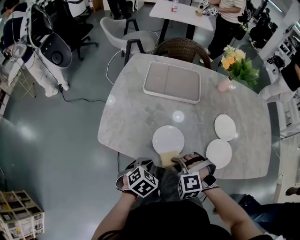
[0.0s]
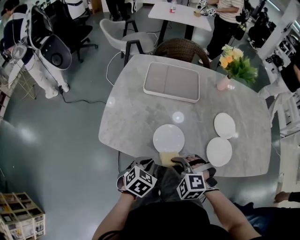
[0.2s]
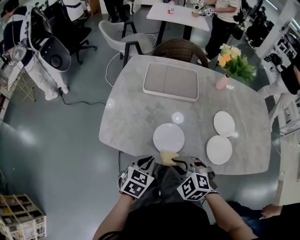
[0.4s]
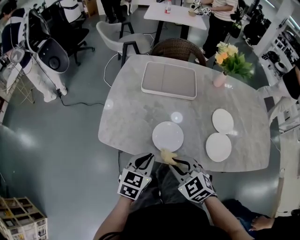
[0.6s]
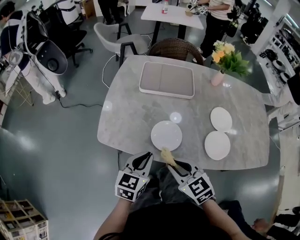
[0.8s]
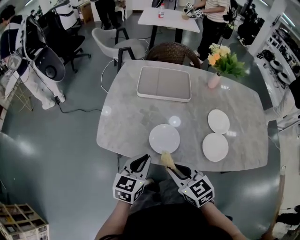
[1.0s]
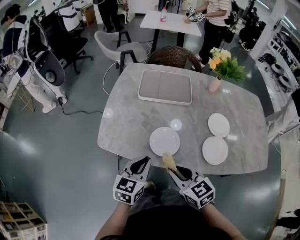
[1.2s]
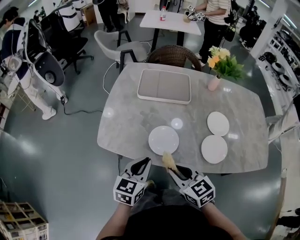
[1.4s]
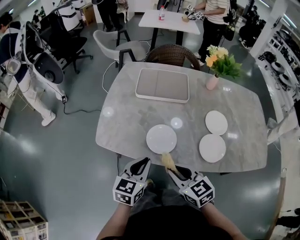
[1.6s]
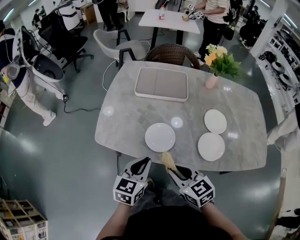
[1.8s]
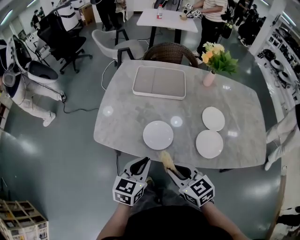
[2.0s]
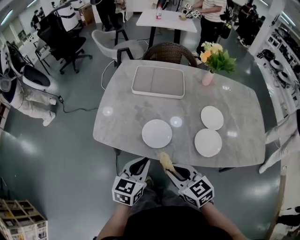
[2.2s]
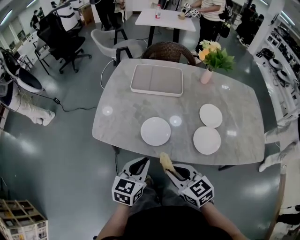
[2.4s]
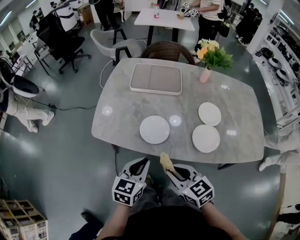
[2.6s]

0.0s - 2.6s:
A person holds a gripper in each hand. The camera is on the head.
0.0s - 1.2s: Both grippers travel together upward, roughly 10 cm. The left gripper tilts its fingers roughly 30 degrees upward. Meanwhile the right gripper rolls clockwise, seen from behind, by approximately 70 degrees.
1.2s - 2.6s: Both grippers move backward, some 5 cm.

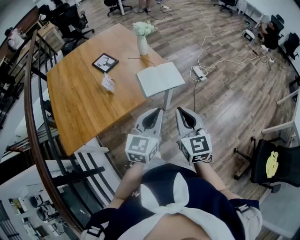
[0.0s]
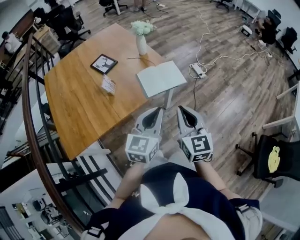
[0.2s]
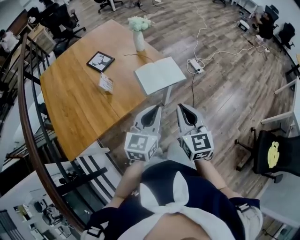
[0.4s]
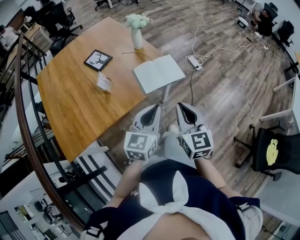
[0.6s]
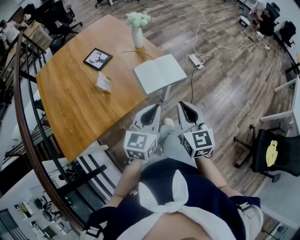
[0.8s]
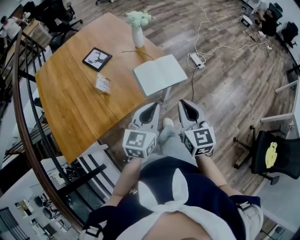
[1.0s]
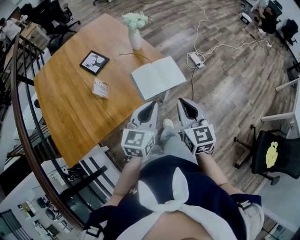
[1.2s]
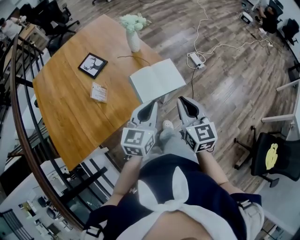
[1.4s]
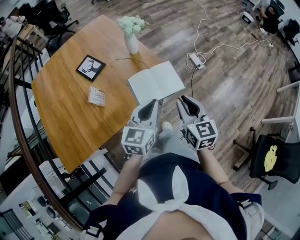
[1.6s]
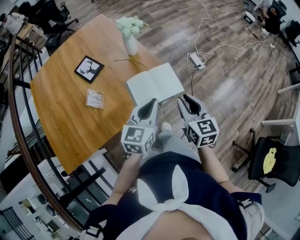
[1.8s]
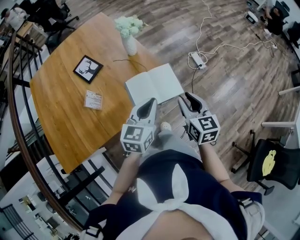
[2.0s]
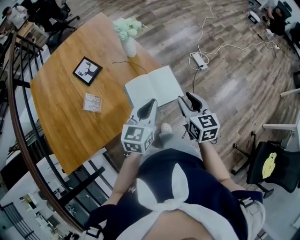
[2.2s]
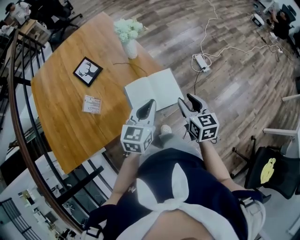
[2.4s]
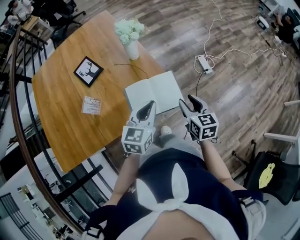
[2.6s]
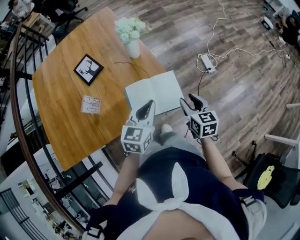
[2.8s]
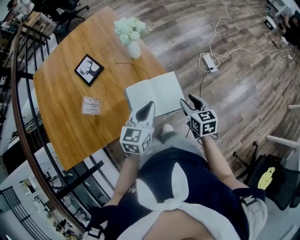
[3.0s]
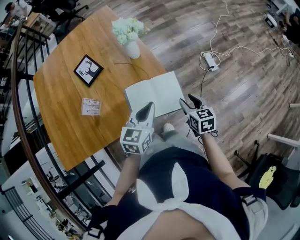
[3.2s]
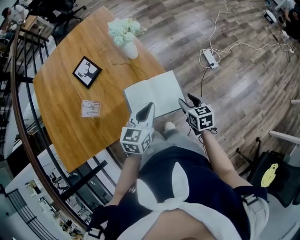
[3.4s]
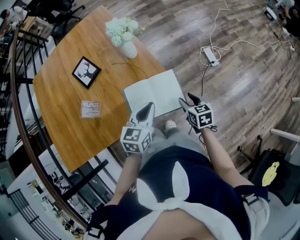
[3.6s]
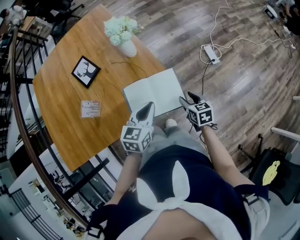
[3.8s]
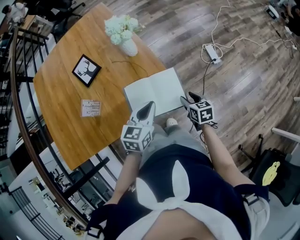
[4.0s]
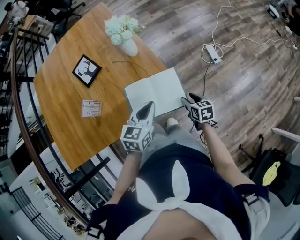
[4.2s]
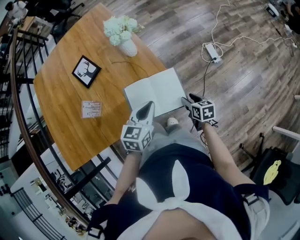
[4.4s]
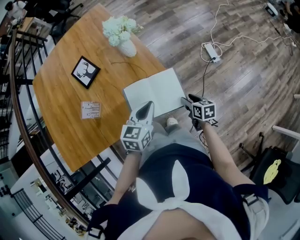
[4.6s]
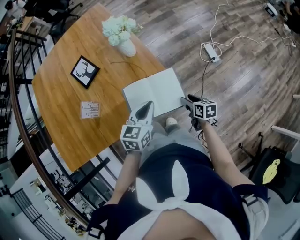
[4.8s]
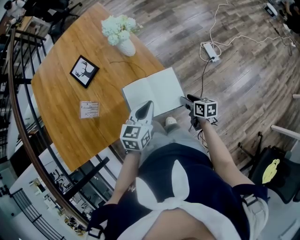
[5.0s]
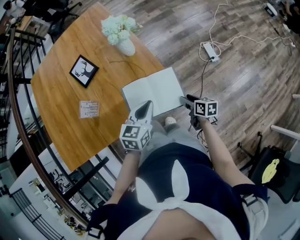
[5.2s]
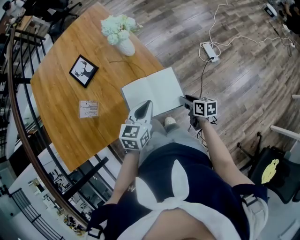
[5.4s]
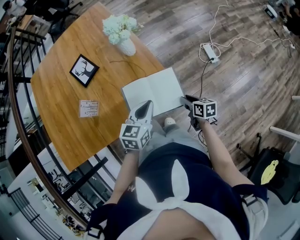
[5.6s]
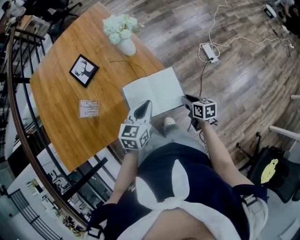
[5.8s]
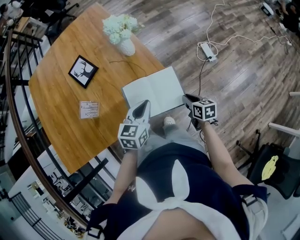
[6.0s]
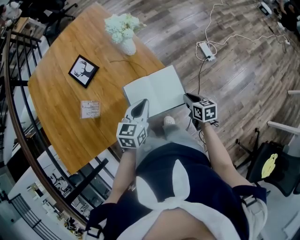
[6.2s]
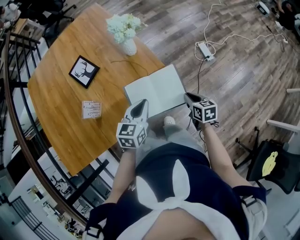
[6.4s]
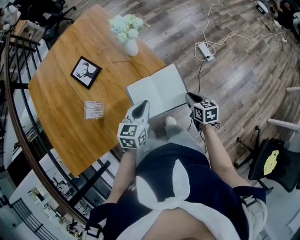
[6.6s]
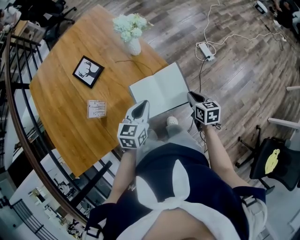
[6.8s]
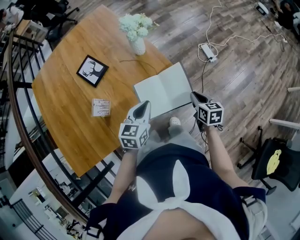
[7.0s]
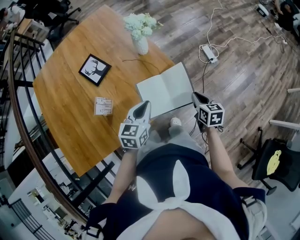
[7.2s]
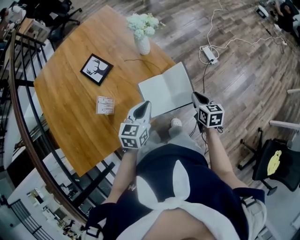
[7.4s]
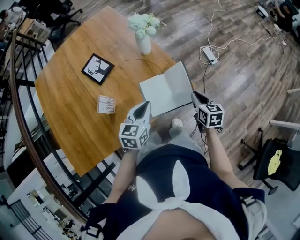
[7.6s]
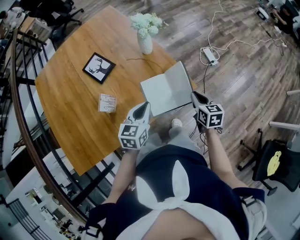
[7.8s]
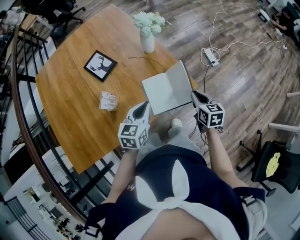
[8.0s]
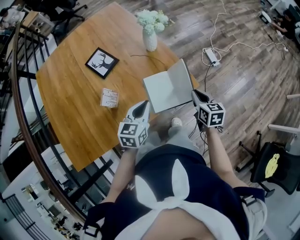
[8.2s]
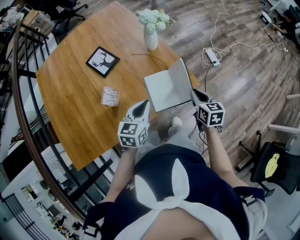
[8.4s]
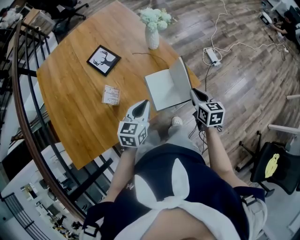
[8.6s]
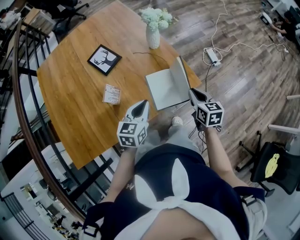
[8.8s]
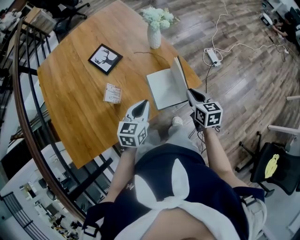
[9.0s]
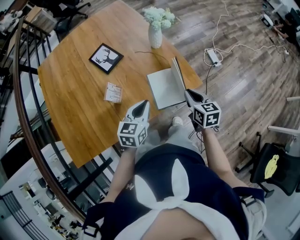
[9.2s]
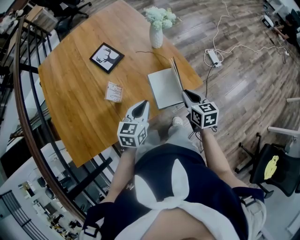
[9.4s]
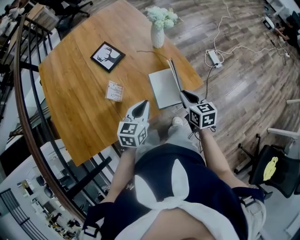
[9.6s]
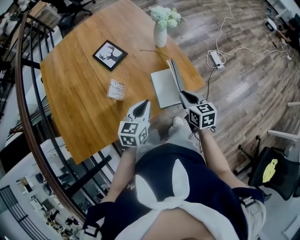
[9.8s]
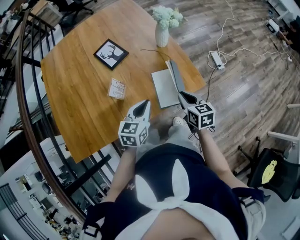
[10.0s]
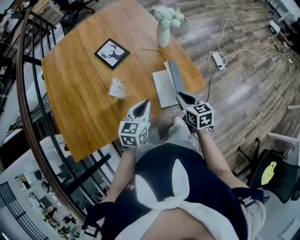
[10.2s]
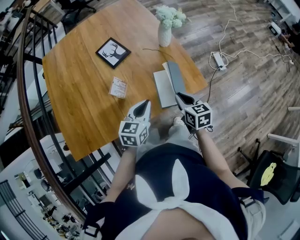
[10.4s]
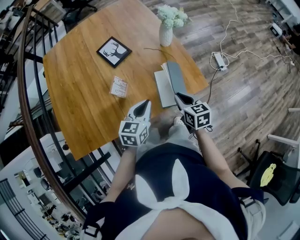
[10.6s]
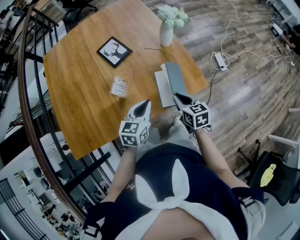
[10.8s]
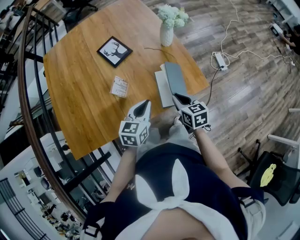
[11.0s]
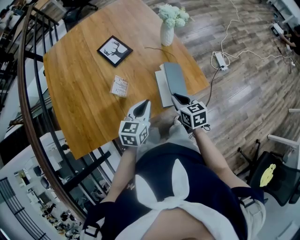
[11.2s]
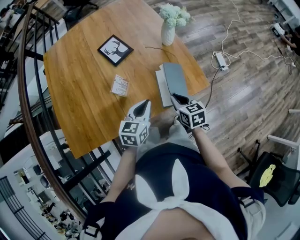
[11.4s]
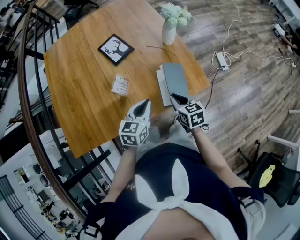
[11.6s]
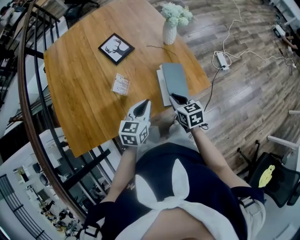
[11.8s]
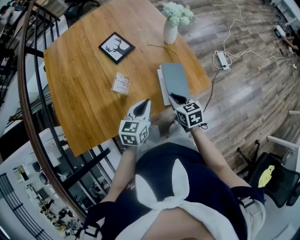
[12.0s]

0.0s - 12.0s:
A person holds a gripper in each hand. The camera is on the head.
0.0s - 1.6s: Both grippers travel together forward, some 20 cm.
1.6s - 3.0s: The right gripper heads forward, downward and to the right, covering roughly 25 cm, turns by roughly 20 degrees, and opens, while the left gripper shifts some 15 cm forward and downward.
3.0s - 4.4s: The left gripper heads downward, covering some 5 cm; the right gripper goes about 15 cm downward.
4.4s - 6.0s: The right gripper closes.
6.0s - 7.6s: The left gripper heads to the left, covering some 10 cm, while the right gripper moves upward and to the left, approximately 15 cm.
7.6s - 9.0s: Both grippers travel together to the left, about 5 cm.
9.0s - 10.4s: The right gripper heads to the left, covering about 10 cm.
10.4s - 12.0s: The right gripper ends up roughly 5 cm from where it was.

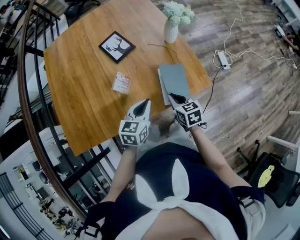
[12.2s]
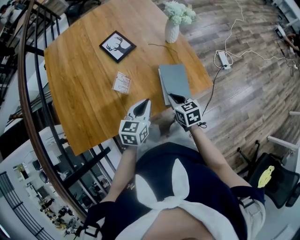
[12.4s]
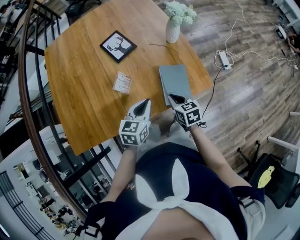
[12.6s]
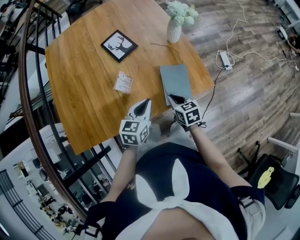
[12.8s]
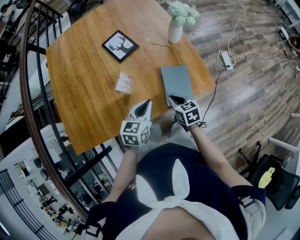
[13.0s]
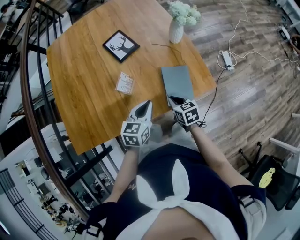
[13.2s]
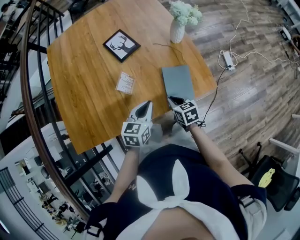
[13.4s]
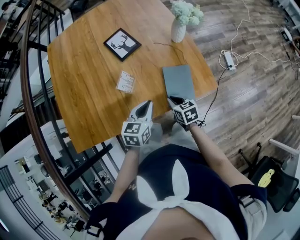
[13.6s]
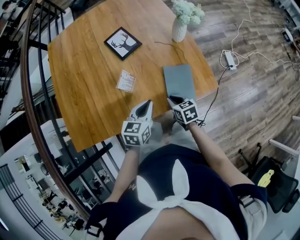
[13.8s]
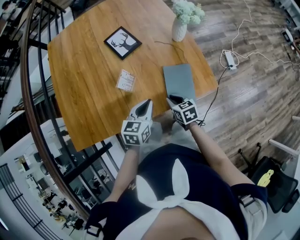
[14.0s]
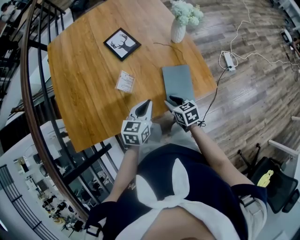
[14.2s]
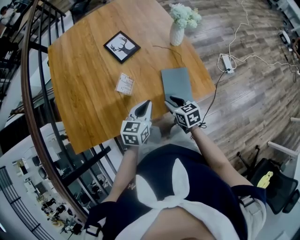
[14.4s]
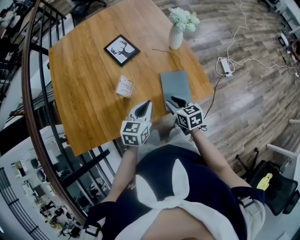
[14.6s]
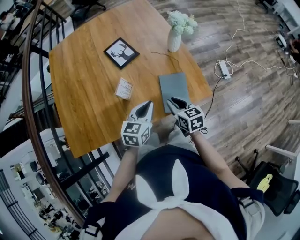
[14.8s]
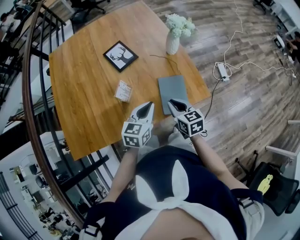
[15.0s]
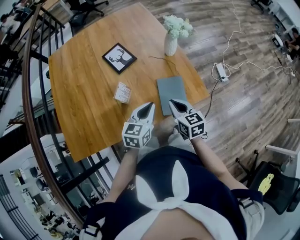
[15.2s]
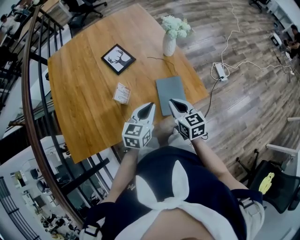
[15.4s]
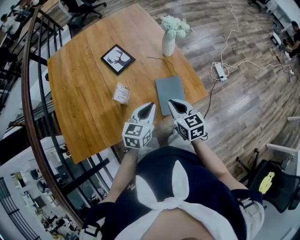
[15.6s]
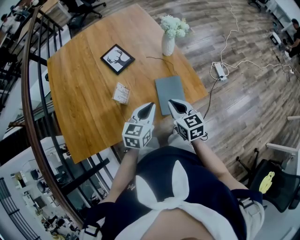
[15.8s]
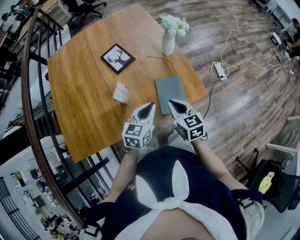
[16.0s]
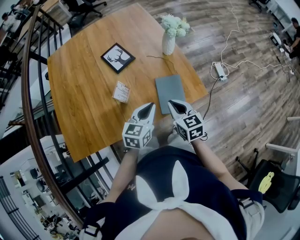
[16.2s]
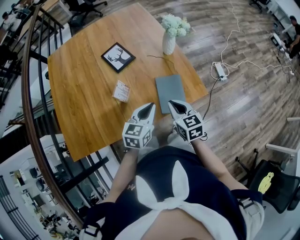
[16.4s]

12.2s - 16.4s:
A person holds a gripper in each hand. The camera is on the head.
12.2s - 13.6s: The right gripper moves downward, approximately 5 cm.
13.6s - 15.0s: The left gripper moves some 5 cm. Meanwhile the right gripper is displaced upward by approximately 10 cm, and opens, then closes again.
15.0s - 16.4s: There are only small adjustments of the grippers.

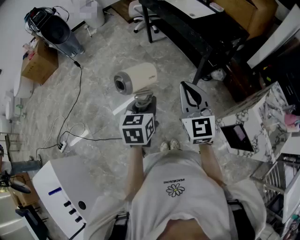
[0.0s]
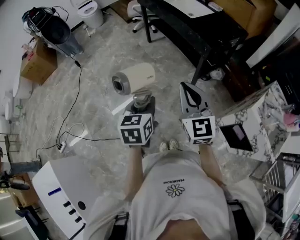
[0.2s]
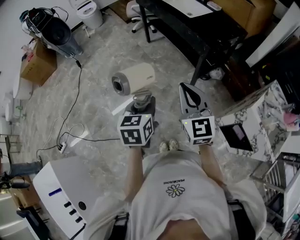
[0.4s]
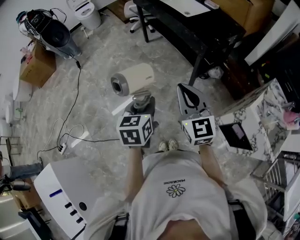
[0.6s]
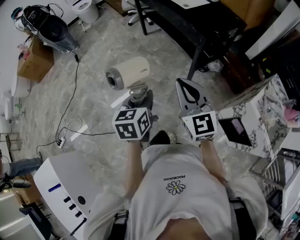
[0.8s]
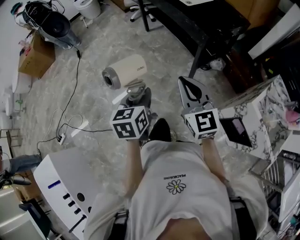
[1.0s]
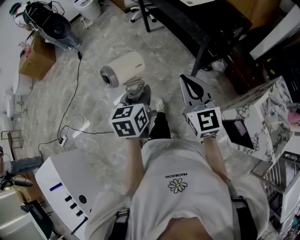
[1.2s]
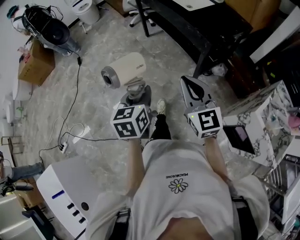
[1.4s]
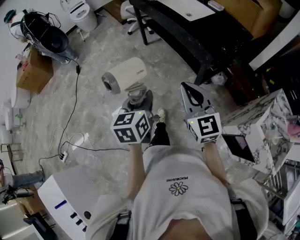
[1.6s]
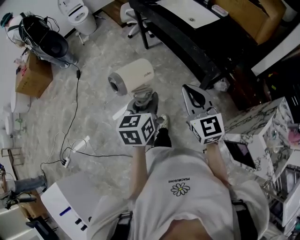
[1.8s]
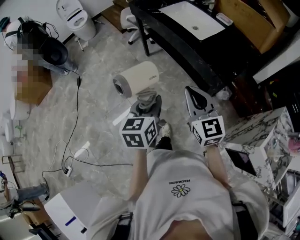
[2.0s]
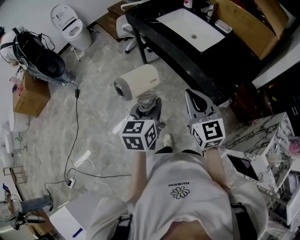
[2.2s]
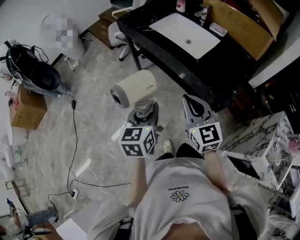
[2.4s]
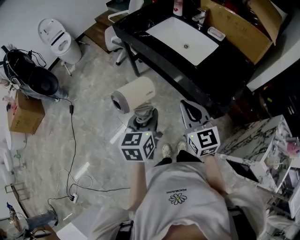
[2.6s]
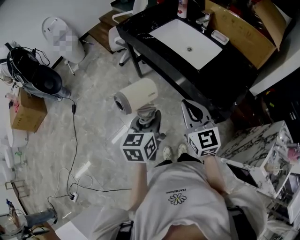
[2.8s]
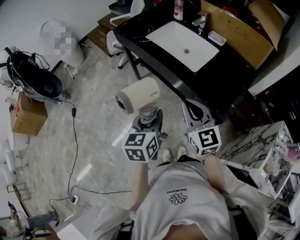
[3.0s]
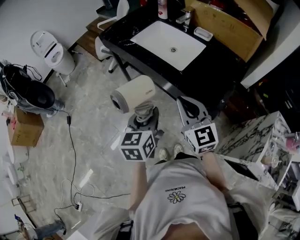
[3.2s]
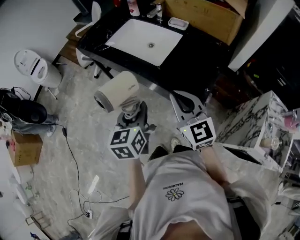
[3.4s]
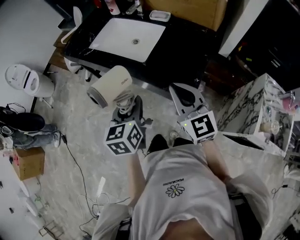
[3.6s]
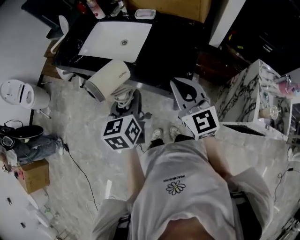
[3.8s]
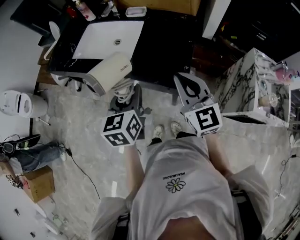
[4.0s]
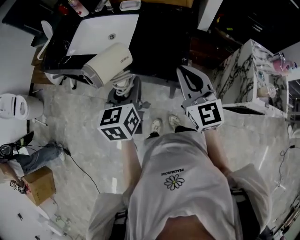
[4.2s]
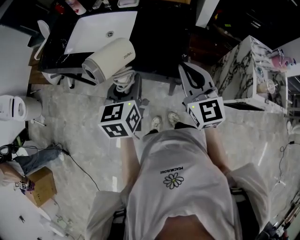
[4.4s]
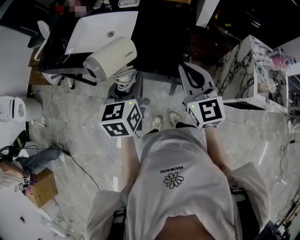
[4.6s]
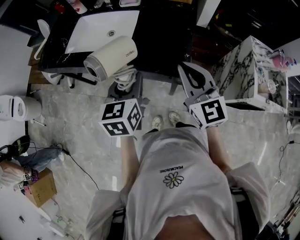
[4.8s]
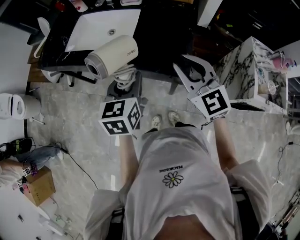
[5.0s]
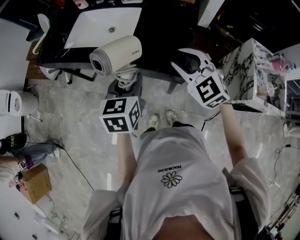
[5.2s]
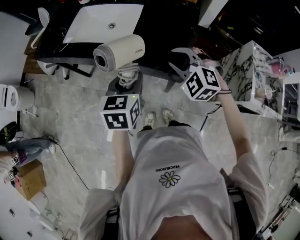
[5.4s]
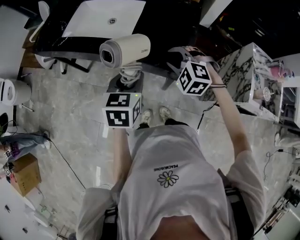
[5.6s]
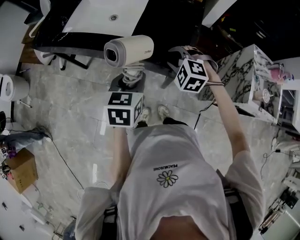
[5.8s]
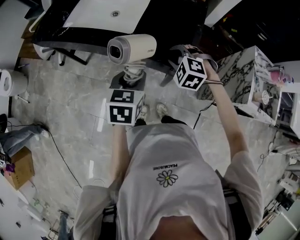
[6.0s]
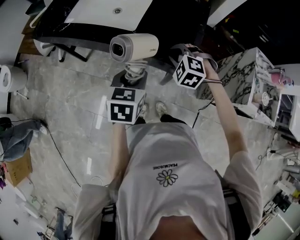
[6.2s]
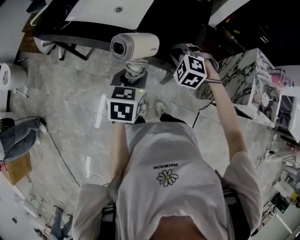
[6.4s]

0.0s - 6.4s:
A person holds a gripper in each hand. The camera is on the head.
0.0s - 1.6s: Both grippers move forward, some 15 cm.
1.6s - 3.2s: Both grippers travel together forward, approximately 35 cm.
3.2s - 4.8s: The left gripper changes place by about 15 cm, and swivels about 30 degrees; the right gripper shifts by approximately 15 cm, and swivels roughly 30 degrees.
4.8s - 6.4s: The left gripper is displaced downward by some 10 cm, while the right gripper heads downward and forward, covering about 20 cm, and tips its fingers downward by roughly 50 degrees.
